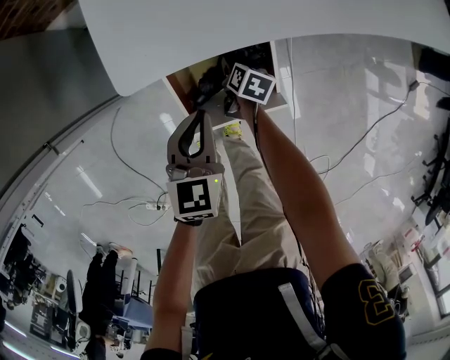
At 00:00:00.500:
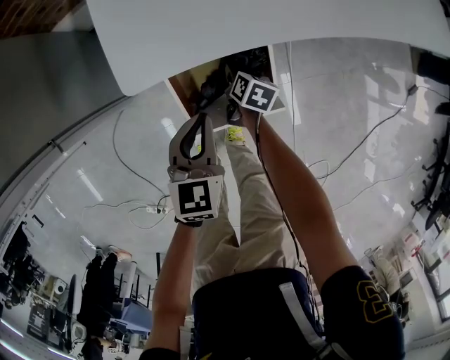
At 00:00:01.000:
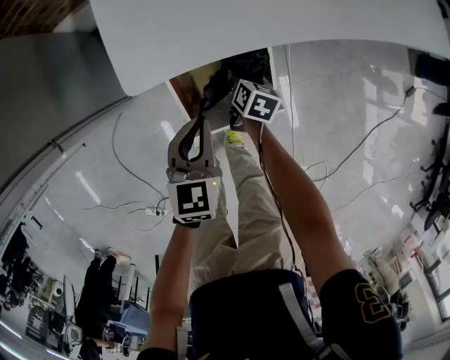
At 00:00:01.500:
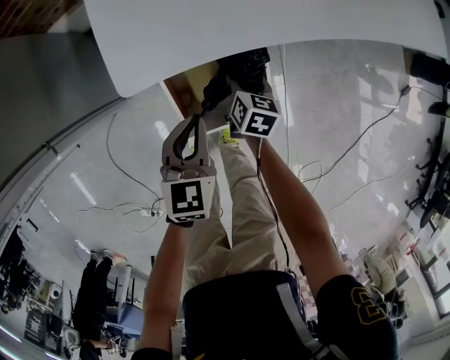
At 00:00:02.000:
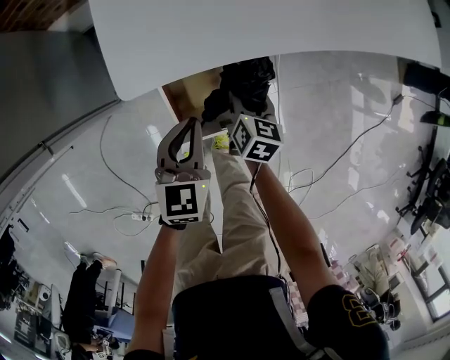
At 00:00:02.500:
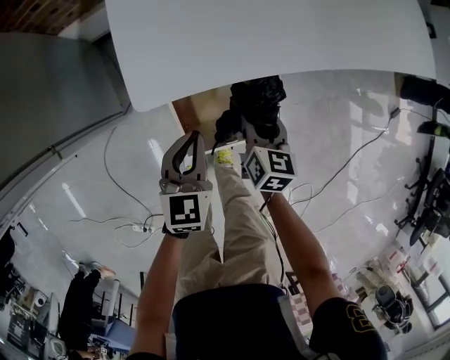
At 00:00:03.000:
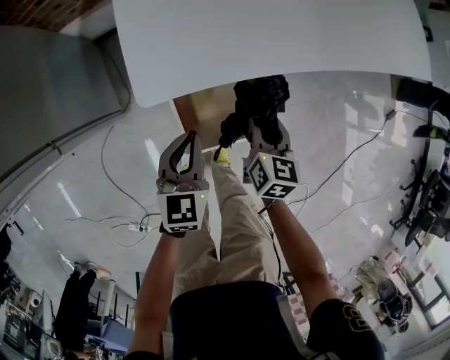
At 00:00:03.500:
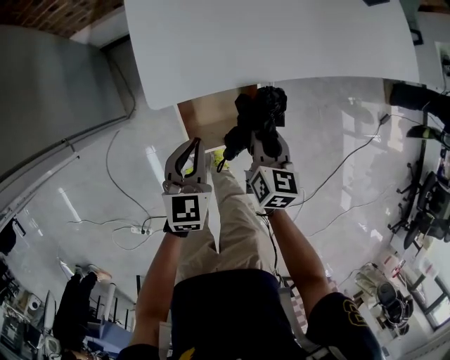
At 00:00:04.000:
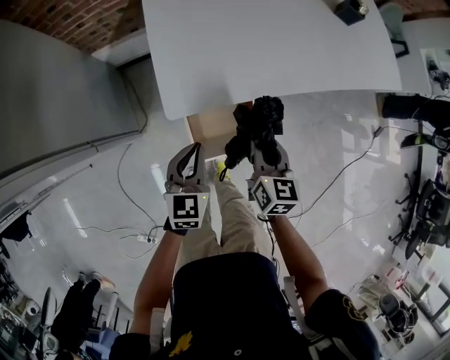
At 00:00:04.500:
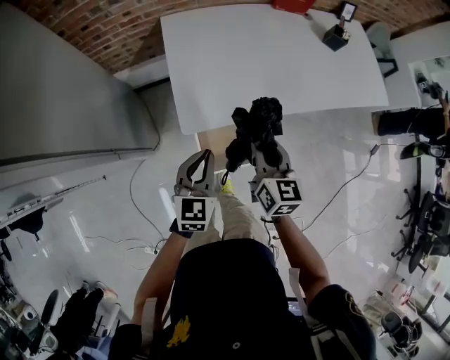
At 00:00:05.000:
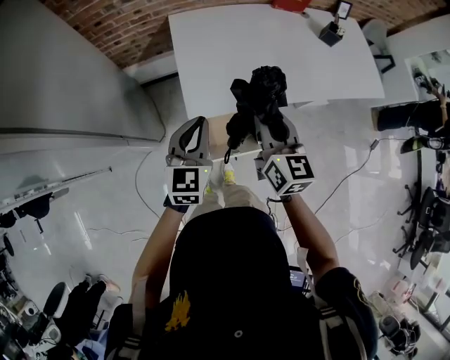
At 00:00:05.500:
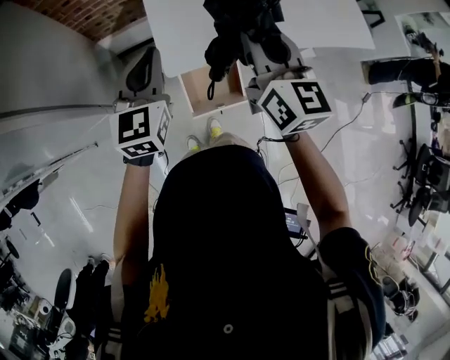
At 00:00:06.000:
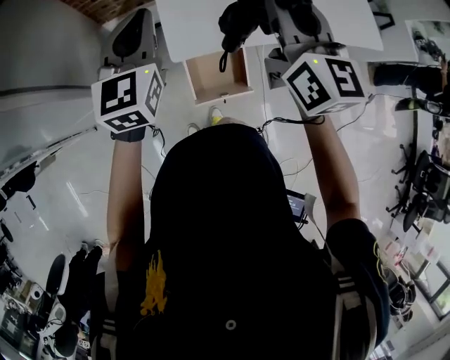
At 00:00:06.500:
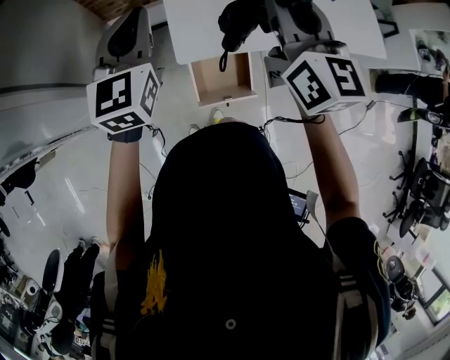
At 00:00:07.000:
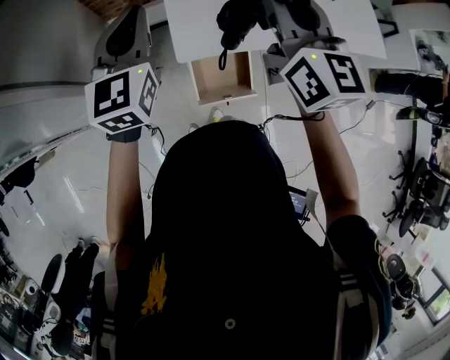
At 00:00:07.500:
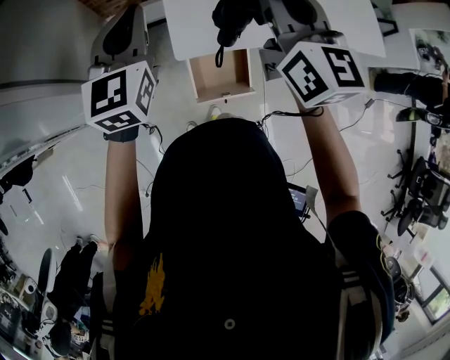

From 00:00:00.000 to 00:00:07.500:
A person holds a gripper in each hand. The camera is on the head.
From 00:00:00.000 to 00:00:02.000: The right gripper moves upward, about 15 cm, and turns by some 20 degrees.
From 00:00:02.000 to 00:00:04.000: The right gripper heads upward, covering approximately 25 cm. The left gripper travels upward by some 15 cm.
From 00:00:04.000 to 00:00:05.500: The two grippers go some 30 cm upward. The right gripper swivels approximately 30 degrees.
From 00:00:05.500 to 00:00:07.500: The left gripper heads upward and to the left, covering some 10 cm. The right gripper goes approximately 5 cm upward.

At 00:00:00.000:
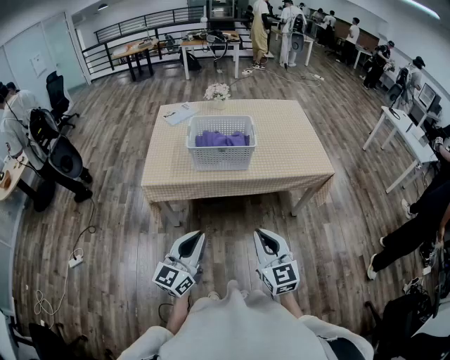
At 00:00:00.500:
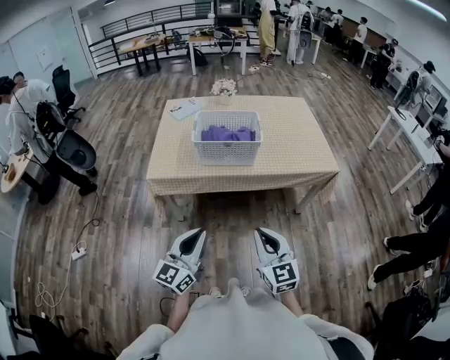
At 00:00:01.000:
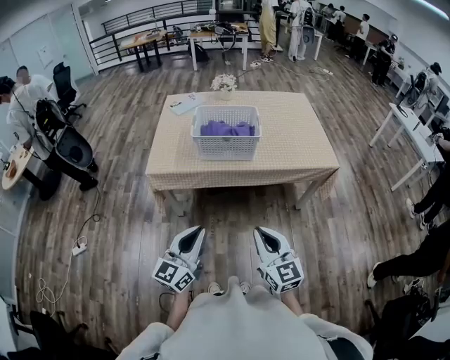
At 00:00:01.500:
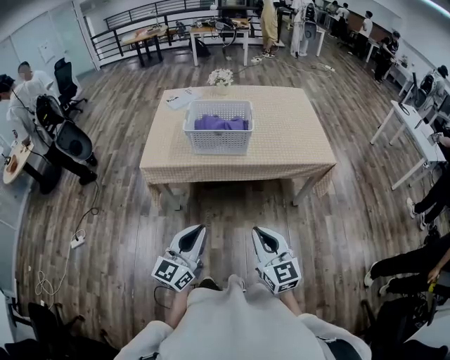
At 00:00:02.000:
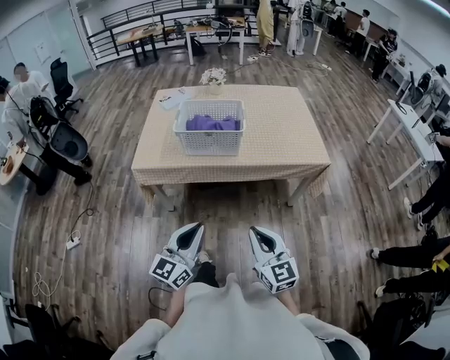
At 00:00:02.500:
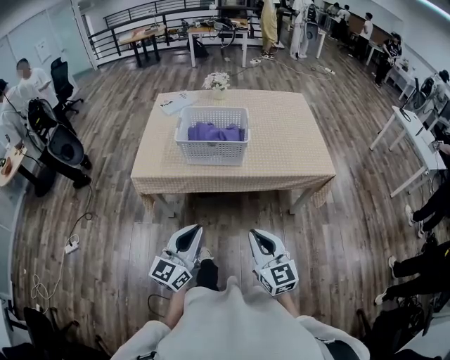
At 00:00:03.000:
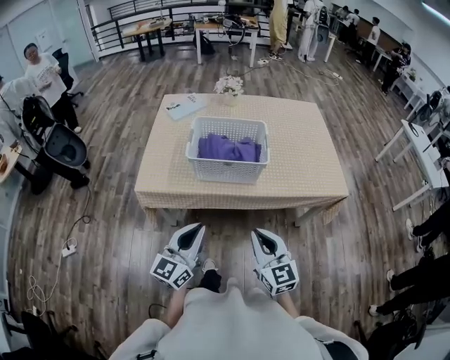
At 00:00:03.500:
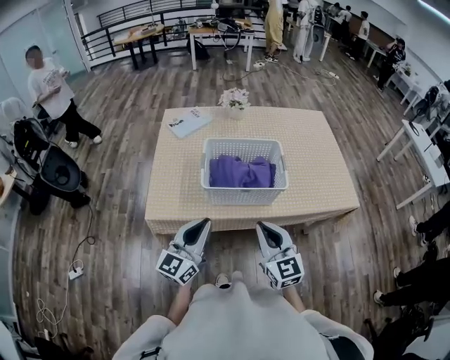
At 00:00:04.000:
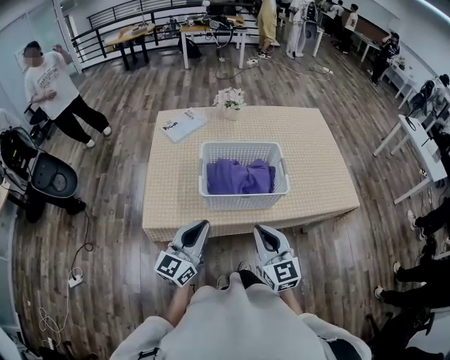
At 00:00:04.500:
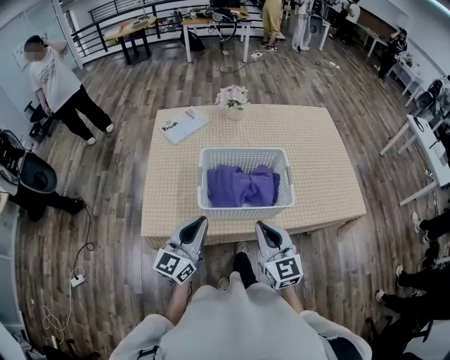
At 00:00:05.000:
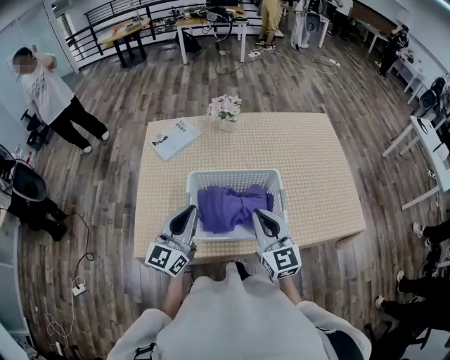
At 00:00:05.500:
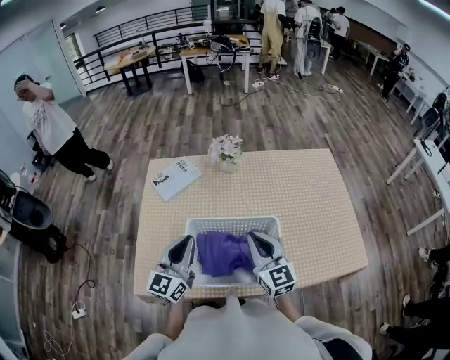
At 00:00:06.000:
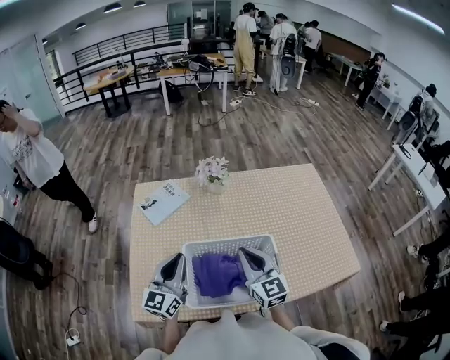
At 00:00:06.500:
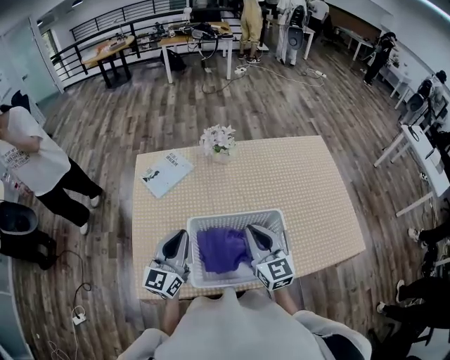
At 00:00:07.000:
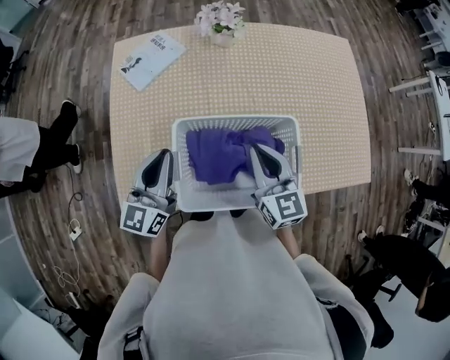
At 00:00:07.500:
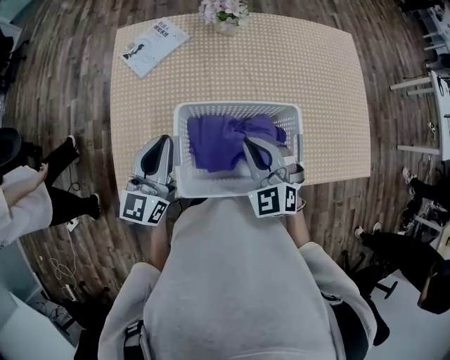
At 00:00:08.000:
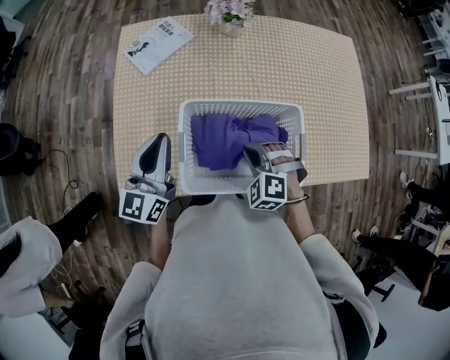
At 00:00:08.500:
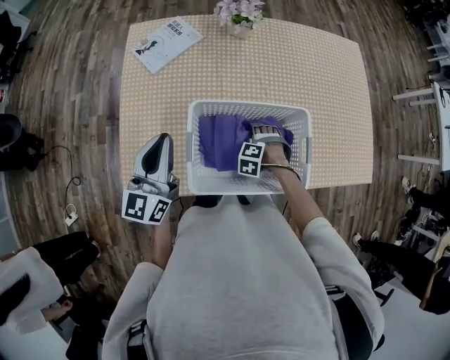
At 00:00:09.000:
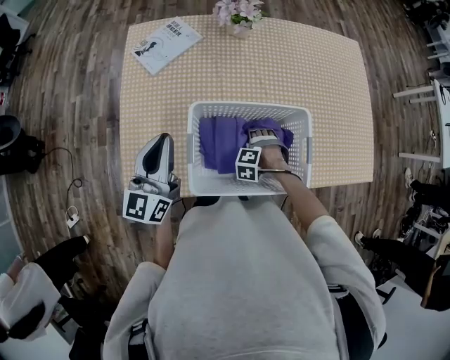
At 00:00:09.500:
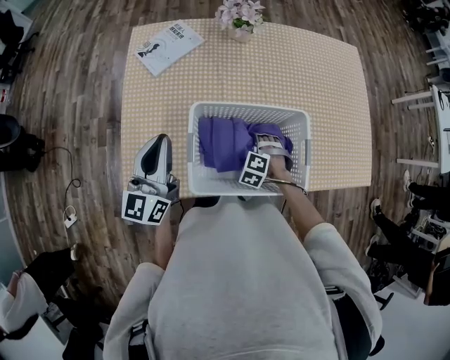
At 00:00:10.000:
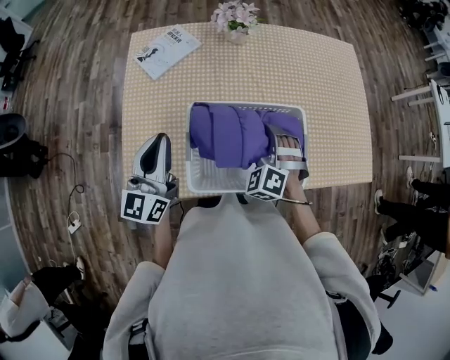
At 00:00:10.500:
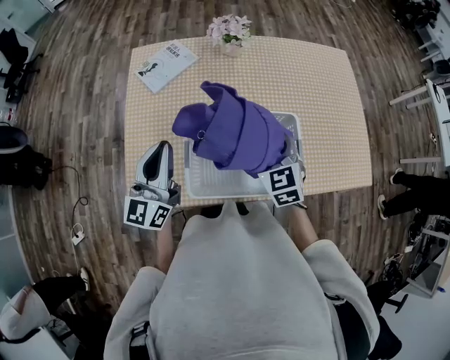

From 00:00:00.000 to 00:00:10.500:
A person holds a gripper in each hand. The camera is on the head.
From 00:00:00.000 to 00:00:02.000: The two grippers go about 10 cm to the right.
From 00:00:02.000 to 00:00:04.000: The two grippers go about 35 cm forward and to the left.
From 00:00:04.000 to 00:00:06.500: Both grippers move forward, roughly 30 cm.
From 00:00:06.500 to 00:00:08.500: The left gripper shifts by some 5 cm. The right gripper goes roughly 35 cm downward, points its fingers roughly 70 degrees further downward, and opens up.
From 00:00:08.500 to 00:00:10.500: The right gripper moves upward, approximately 25 cm, tips its fingers upward by about 50 degrees, and closes up.

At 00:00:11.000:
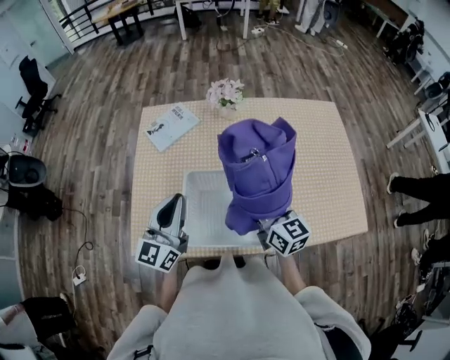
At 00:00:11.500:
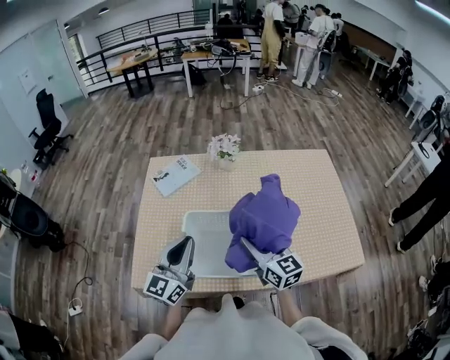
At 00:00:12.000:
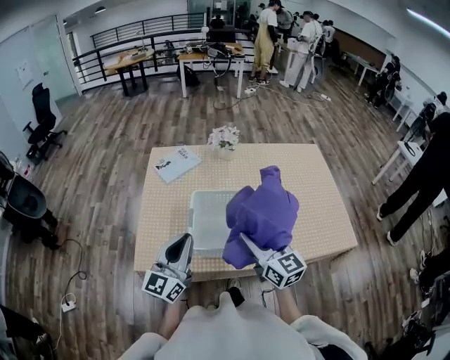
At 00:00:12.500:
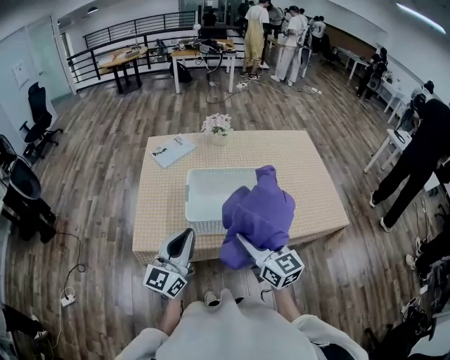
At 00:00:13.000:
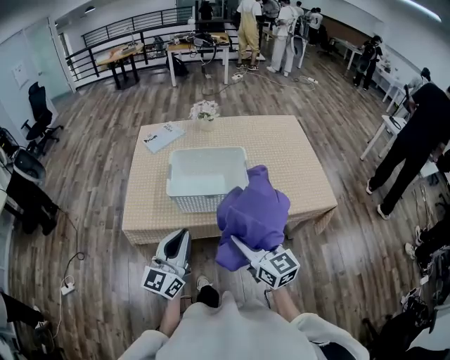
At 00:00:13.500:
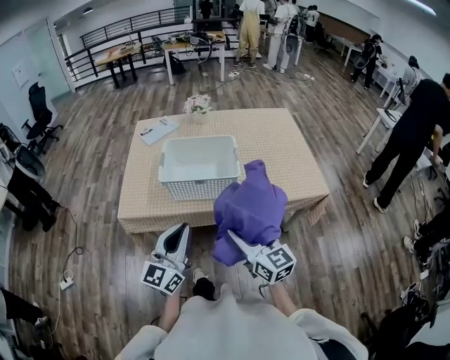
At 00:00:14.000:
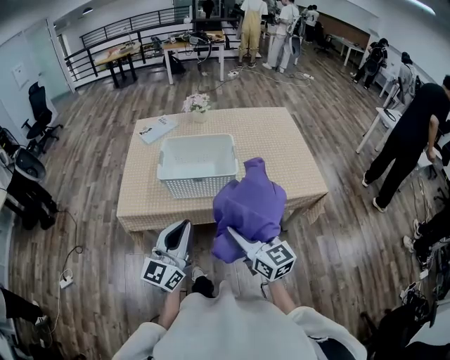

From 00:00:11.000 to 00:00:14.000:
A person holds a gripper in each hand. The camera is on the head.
From 00:00:11.000 to 00:00:12.500: Both grippers move backward, roughly 25 cm.
From 00:00:12.500 to 00:00:14.000: The grippers both shift backward and to the right by about 20 cm.

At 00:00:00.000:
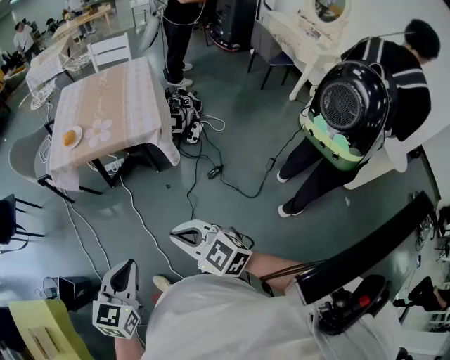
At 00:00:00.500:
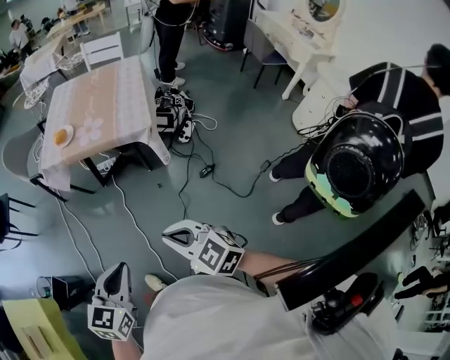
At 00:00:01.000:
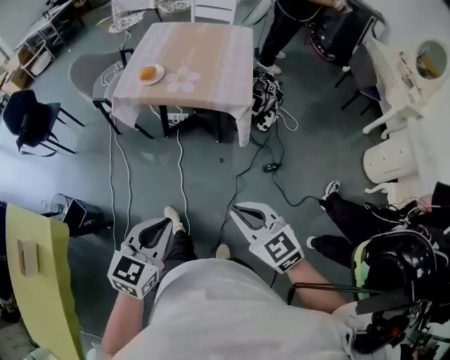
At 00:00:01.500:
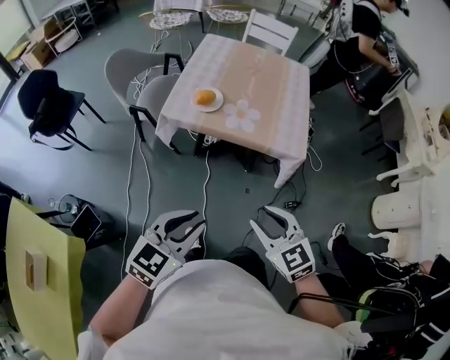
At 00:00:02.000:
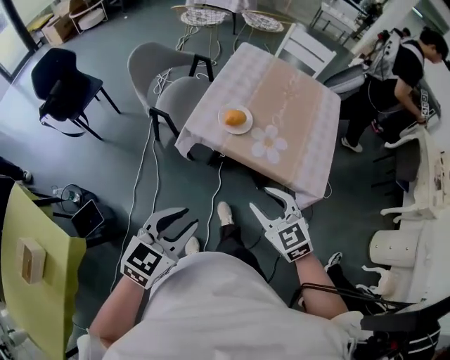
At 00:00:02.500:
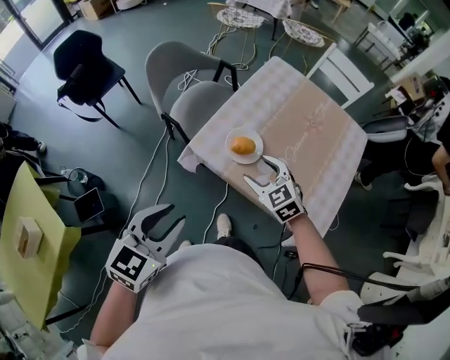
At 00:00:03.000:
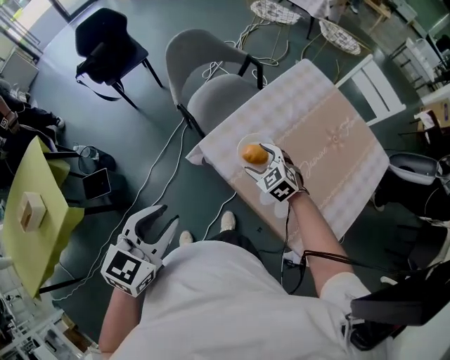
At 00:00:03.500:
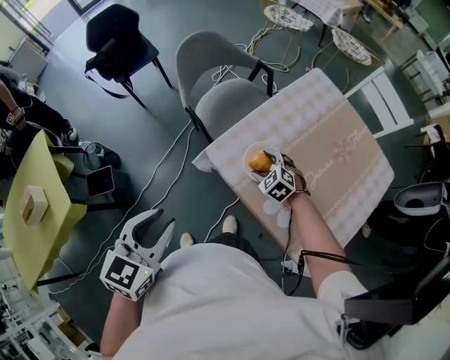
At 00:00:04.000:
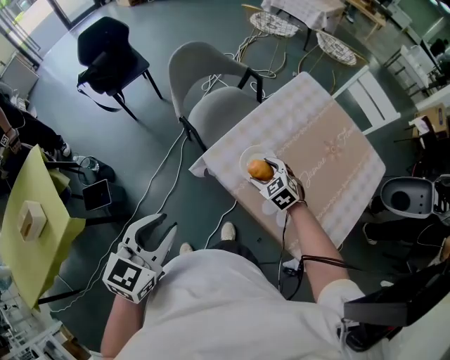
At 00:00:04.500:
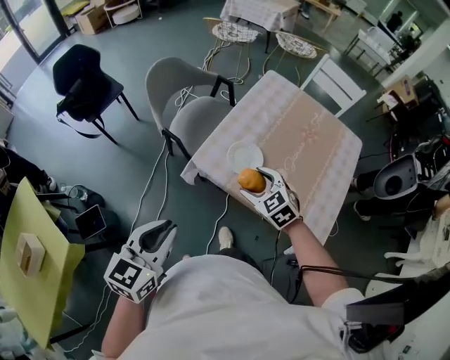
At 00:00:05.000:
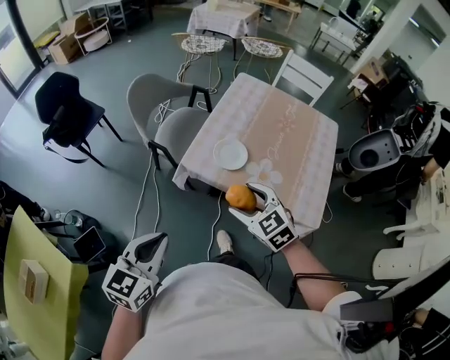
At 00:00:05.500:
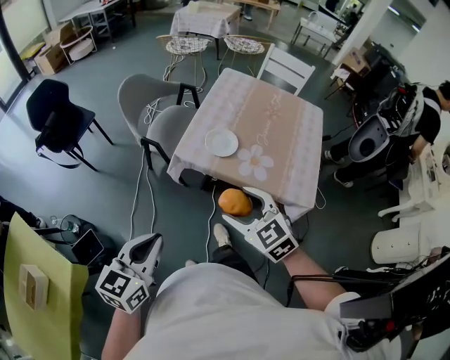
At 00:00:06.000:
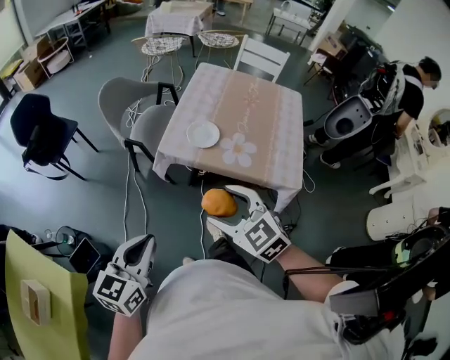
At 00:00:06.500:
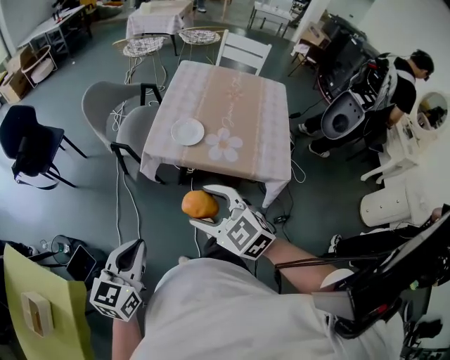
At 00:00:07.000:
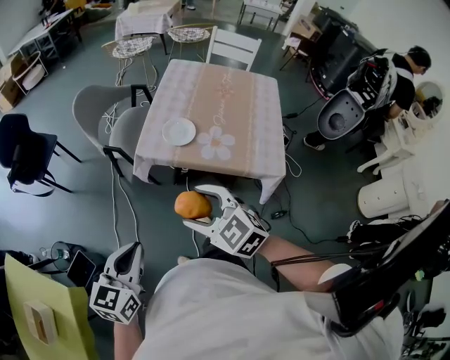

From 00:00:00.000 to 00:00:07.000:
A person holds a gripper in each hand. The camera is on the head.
From 00:00:00.000 to 00:00:02.000: Both grippers travel together forward and to the left, about 40 cm. The left gripper opens its fingers. Meanwhile the right gripper opens up.
From 00:00:02.000 to 00:00:03.500: The left gripper shifts by approximately 15 cm, and turns by about 40 degrees. The right gripper changes place by roughly 40 cm, swivels approximately 40 degrees, and opens.
From 00:00:03.500 to 00:00:05.000: The left gripper shifts approximately 10 cm backward and to the left, changes its angle by roughly 20 degrees, and closes up; the right gripper goes about 30 cm backward and upward, and turns by some 30 degrees.
From 00:00:05.000 to 00:00:07.000: The right gripper heads backward, covering about 15 cm. Meanwhile the left gripper heads backward, covering about 10 cm.
